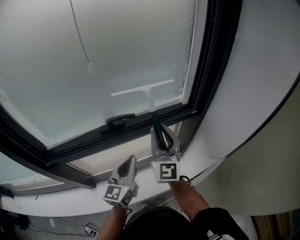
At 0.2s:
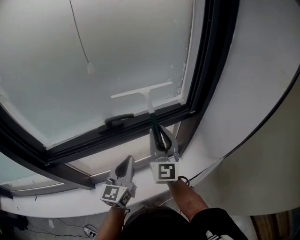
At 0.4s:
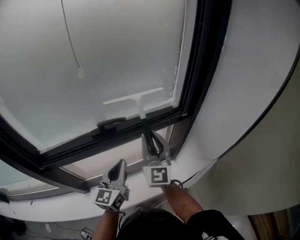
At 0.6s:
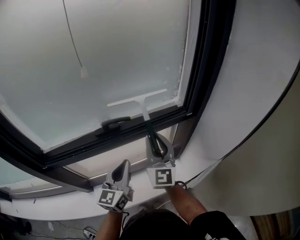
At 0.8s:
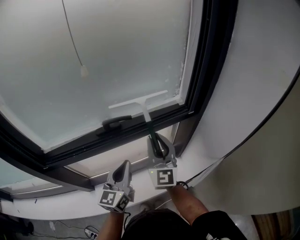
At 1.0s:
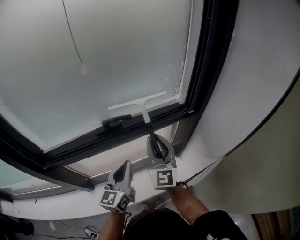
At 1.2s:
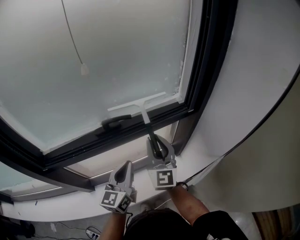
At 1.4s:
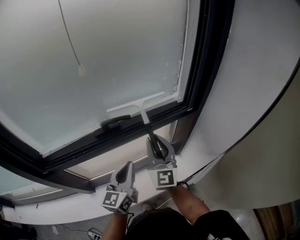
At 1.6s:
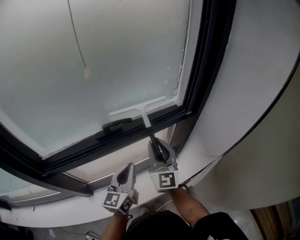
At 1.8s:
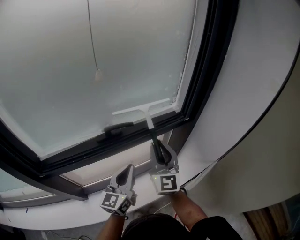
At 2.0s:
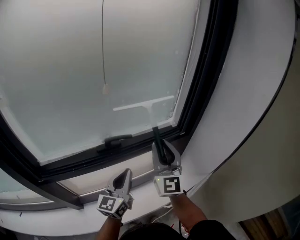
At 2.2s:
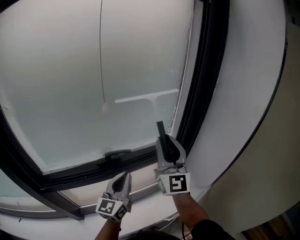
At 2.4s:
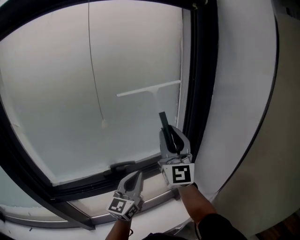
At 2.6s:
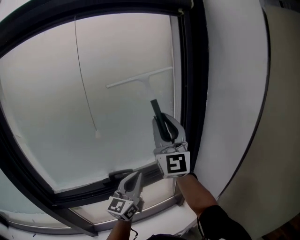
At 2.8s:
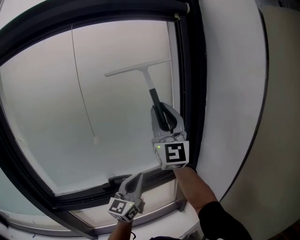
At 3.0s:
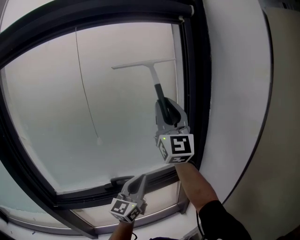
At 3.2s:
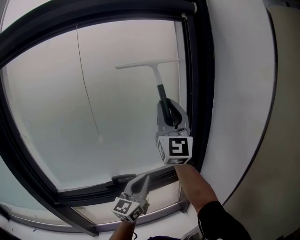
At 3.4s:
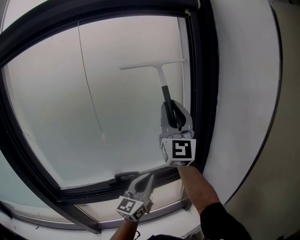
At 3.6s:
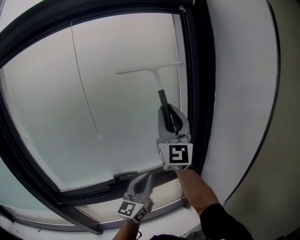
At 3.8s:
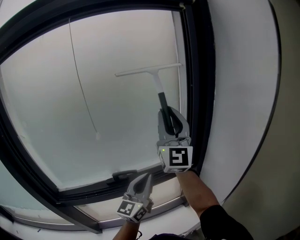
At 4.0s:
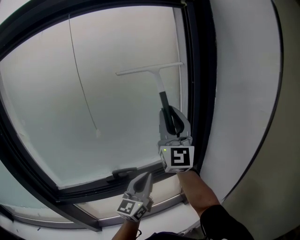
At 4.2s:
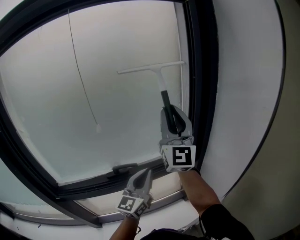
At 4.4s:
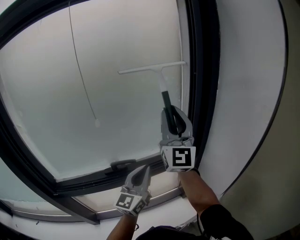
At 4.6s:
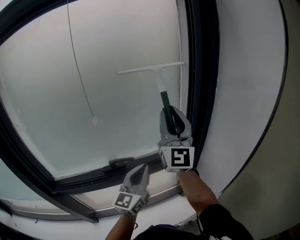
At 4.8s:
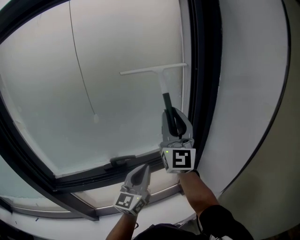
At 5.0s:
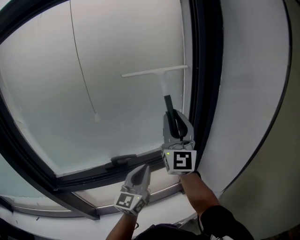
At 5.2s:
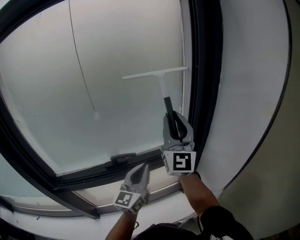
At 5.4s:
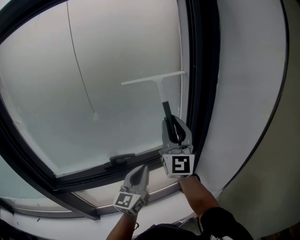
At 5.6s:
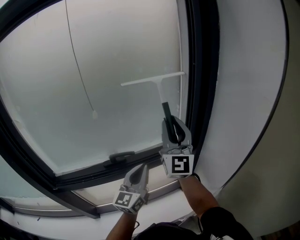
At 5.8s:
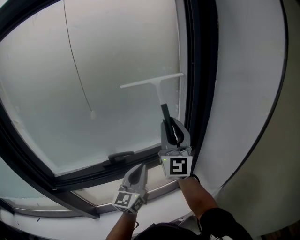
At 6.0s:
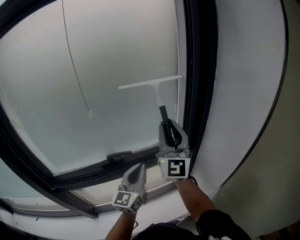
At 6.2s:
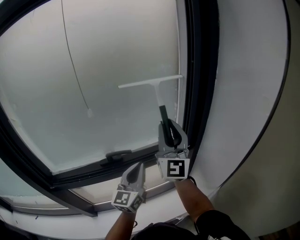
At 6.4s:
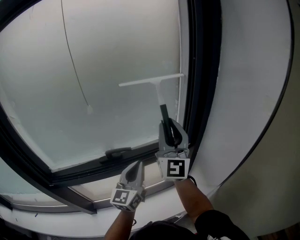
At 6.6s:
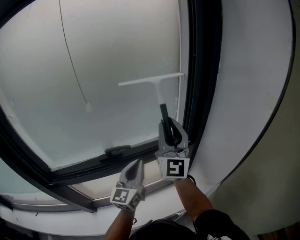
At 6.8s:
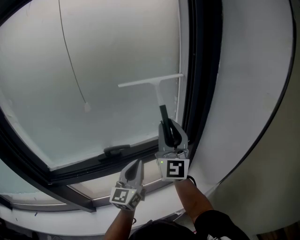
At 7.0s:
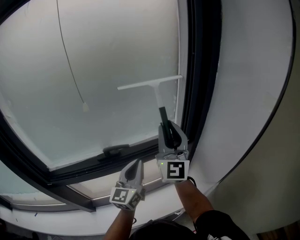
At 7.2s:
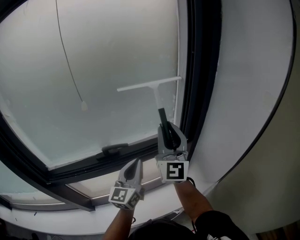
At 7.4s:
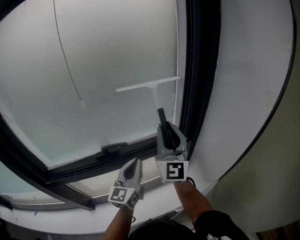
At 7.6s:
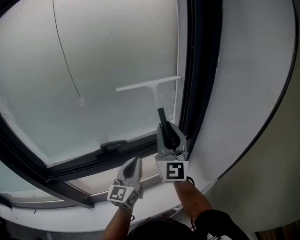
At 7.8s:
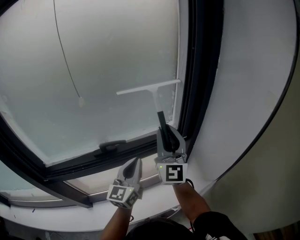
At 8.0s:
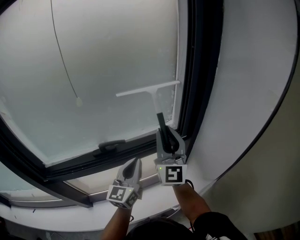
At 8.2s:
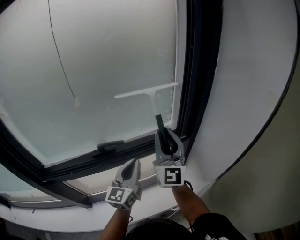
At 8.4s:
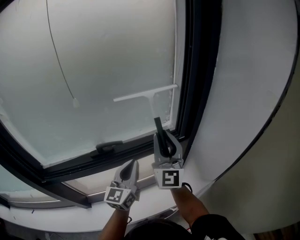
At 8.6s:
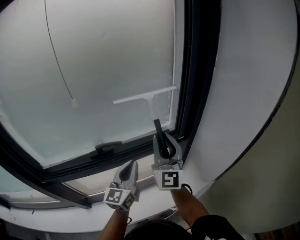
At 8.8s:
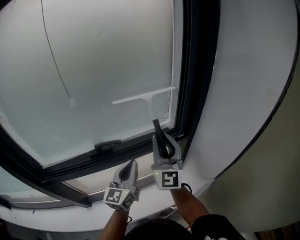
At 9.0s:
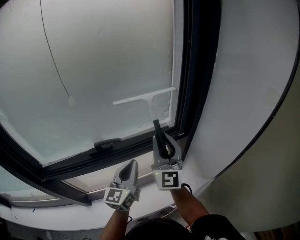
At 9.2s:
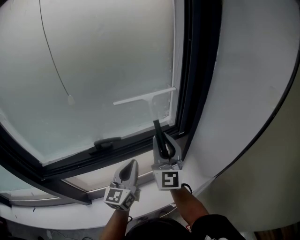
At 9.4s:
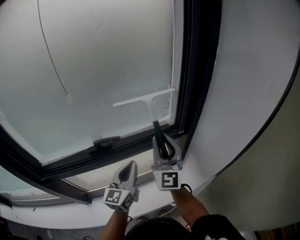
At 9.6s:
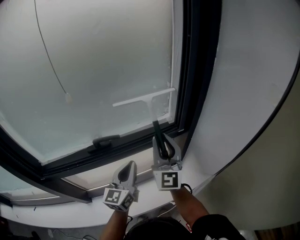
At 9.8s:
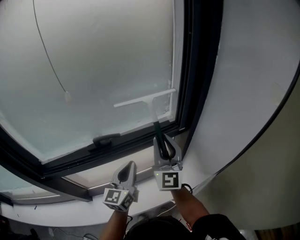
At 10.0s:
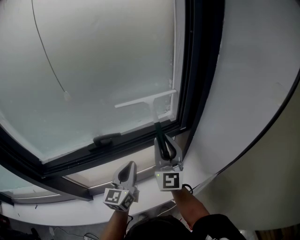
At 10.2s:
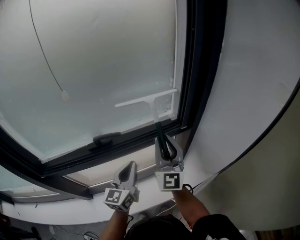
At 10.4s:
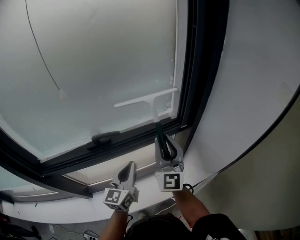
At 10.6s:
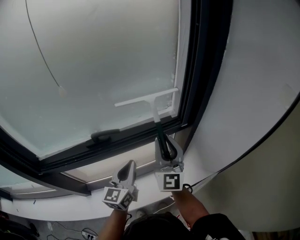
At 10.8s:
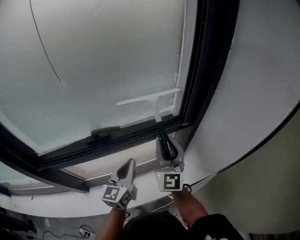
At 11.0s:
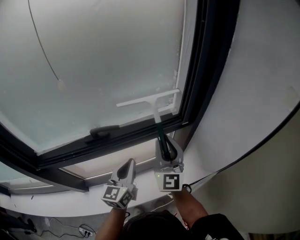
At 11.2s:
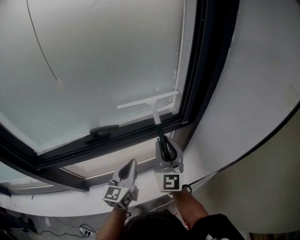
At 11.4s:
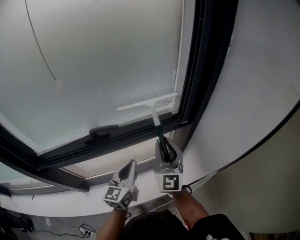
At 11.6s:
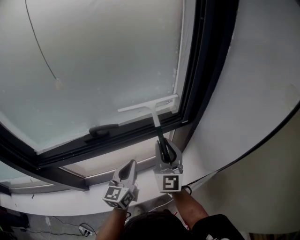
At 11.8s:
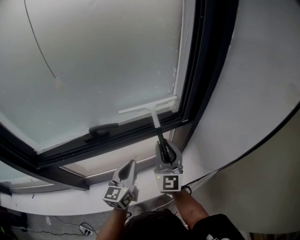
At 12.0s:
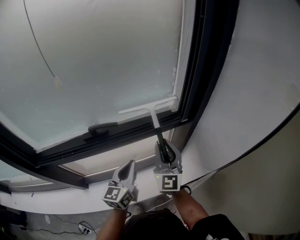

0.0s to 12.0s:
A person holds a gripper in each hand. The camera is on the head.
0.0s to 1.6s: The right gripper travels downward by approximately 5 cm.
1.6s to 3.0s: The right gripper moves upward, some 40 cm, and tips its fingers upward by roughly 30 degrees. The left gripper goes roughly 20 cm upward, forward and to the right, and rotates approximately 20 degrees.
3.0s to 4.4s: The right gripper heads downward, covering approximately 10 cm.
4.4s to 6.0s: The right gripper goes roughly 10 cm downward.
6.0s to 7.6s: The right gripper shifts approximately 5 cm downward.
7.6s to 9.0s: The right gripper travels downward by some 5 cm.
9.0s to 10.4s: The grippers make only small movements.
10.4s to 12.0s: The right gripper shifts approximately 5 cm downward.

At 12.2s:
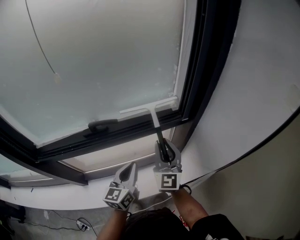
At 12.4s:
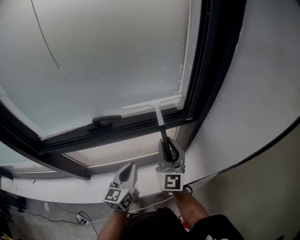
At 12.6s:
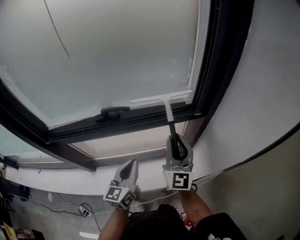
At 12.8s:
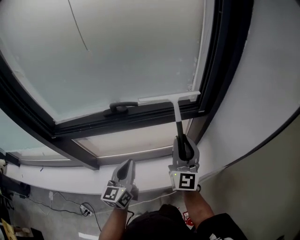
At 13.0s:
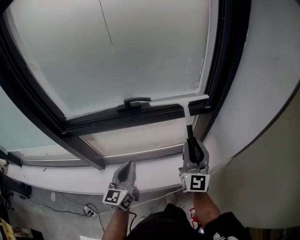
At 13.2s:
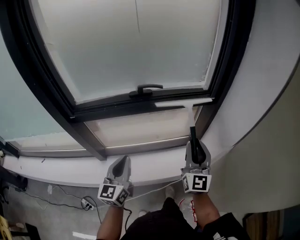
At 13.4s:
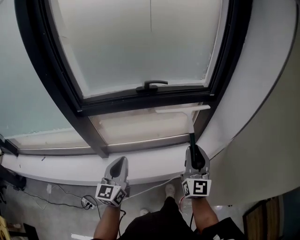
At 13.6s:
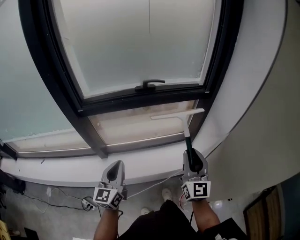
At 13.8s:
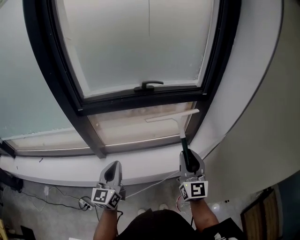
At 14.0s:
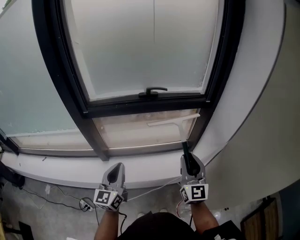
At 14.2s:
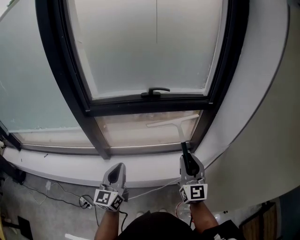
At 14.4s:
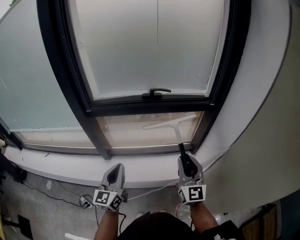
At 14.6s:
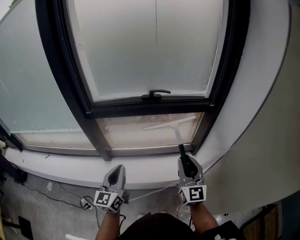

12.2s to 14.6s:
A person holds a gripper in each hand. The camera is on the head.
12.2s to 13.4s: The right gripper shifts approximately 25 cm backward. Meanwhile the left gripper heads backward and to the left, covering about 30 cm.
13.4s to 14.6s: The left gripper moves backward, roughly 5 cm.

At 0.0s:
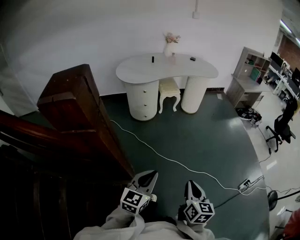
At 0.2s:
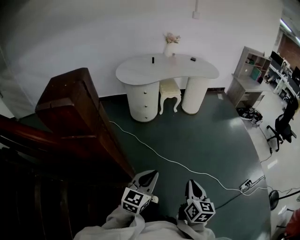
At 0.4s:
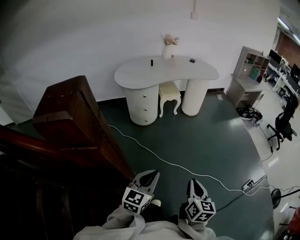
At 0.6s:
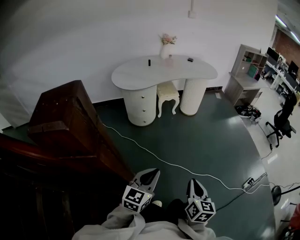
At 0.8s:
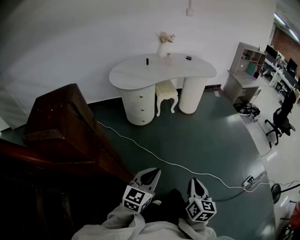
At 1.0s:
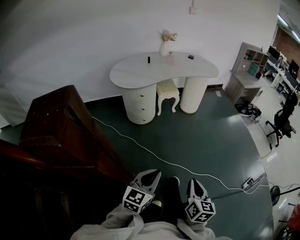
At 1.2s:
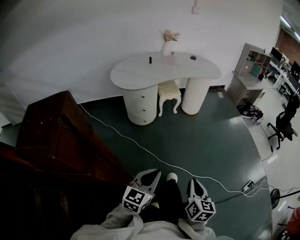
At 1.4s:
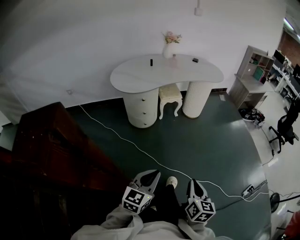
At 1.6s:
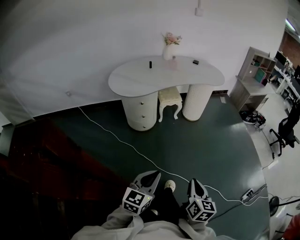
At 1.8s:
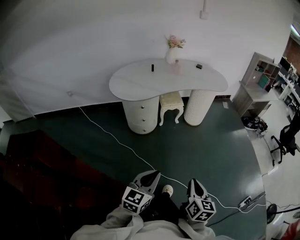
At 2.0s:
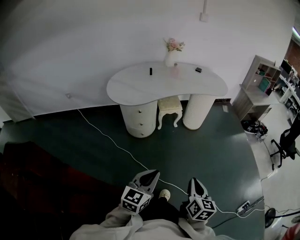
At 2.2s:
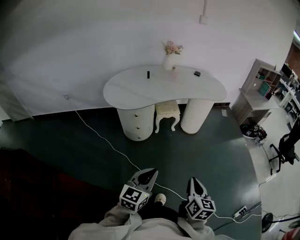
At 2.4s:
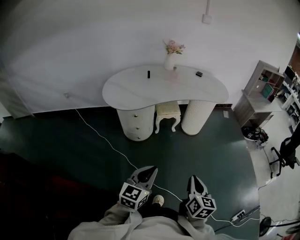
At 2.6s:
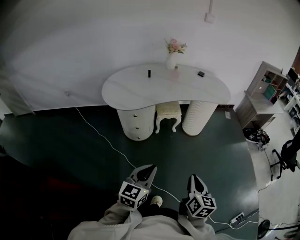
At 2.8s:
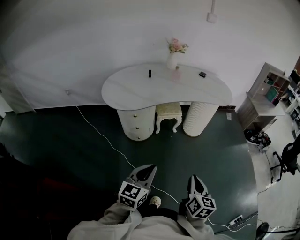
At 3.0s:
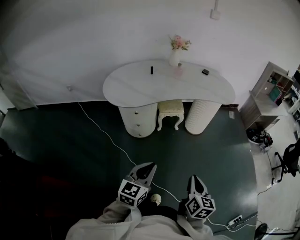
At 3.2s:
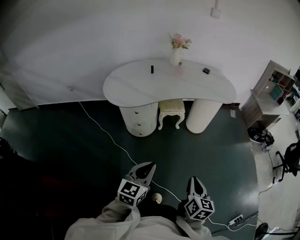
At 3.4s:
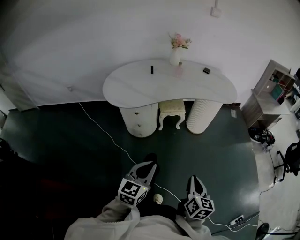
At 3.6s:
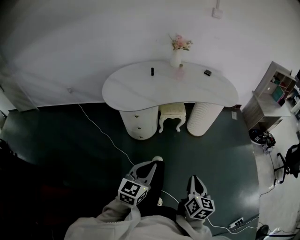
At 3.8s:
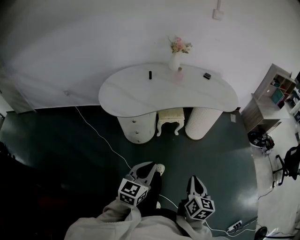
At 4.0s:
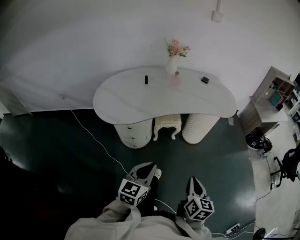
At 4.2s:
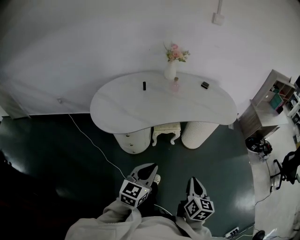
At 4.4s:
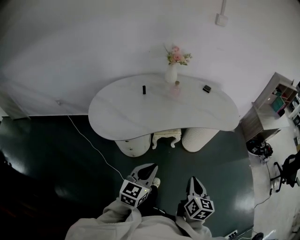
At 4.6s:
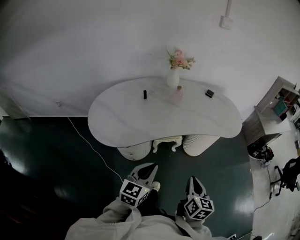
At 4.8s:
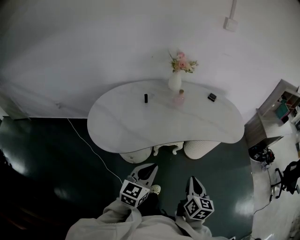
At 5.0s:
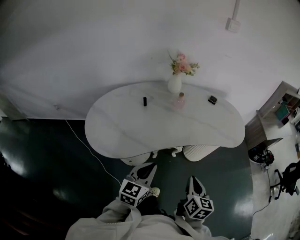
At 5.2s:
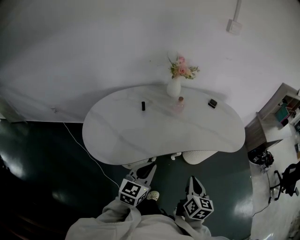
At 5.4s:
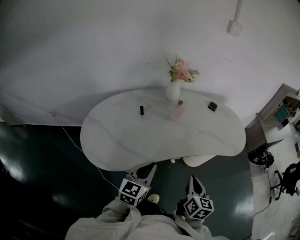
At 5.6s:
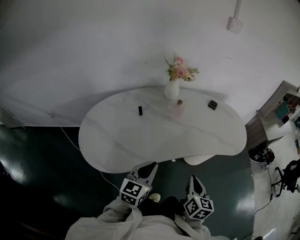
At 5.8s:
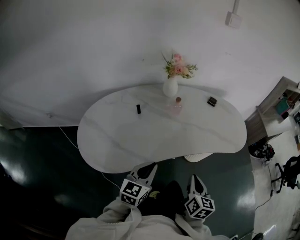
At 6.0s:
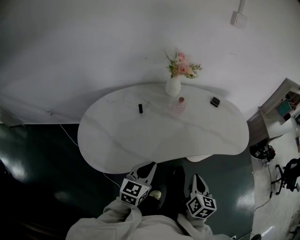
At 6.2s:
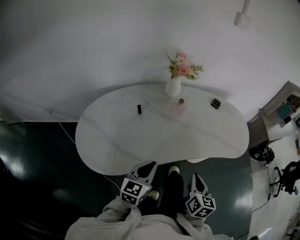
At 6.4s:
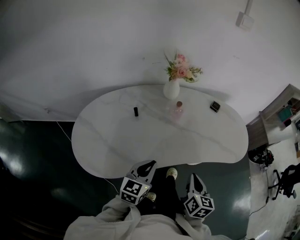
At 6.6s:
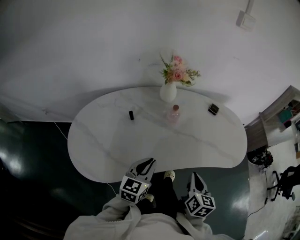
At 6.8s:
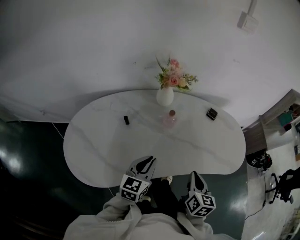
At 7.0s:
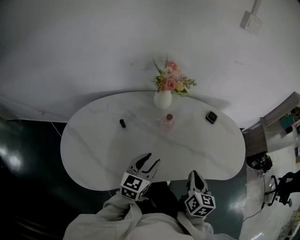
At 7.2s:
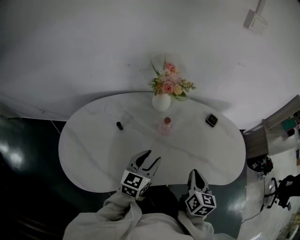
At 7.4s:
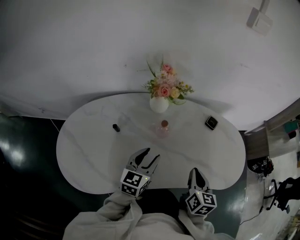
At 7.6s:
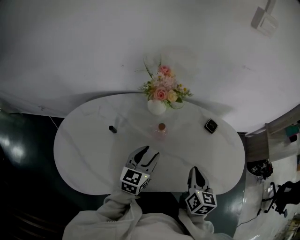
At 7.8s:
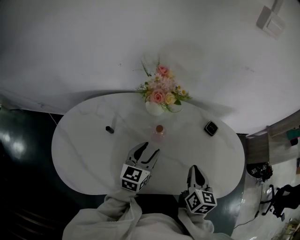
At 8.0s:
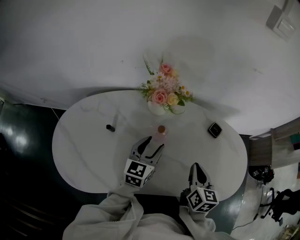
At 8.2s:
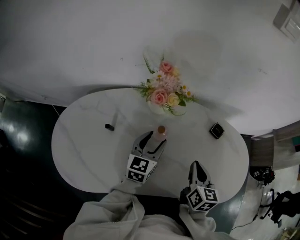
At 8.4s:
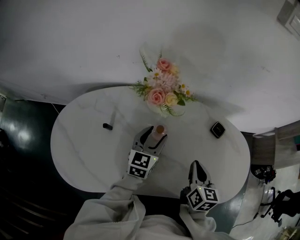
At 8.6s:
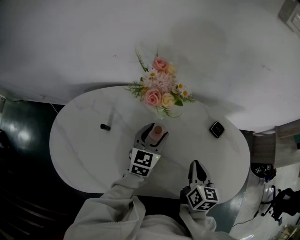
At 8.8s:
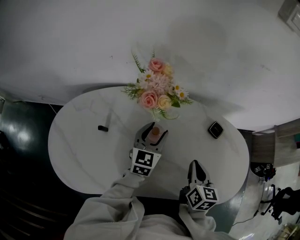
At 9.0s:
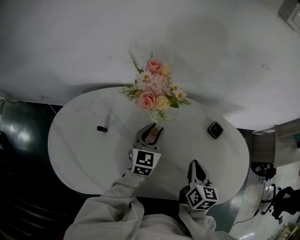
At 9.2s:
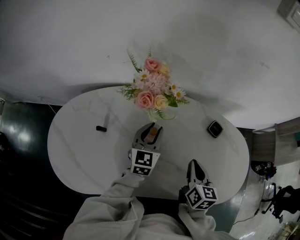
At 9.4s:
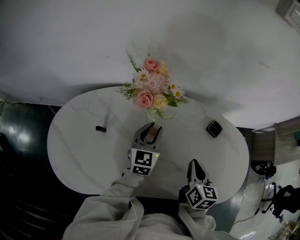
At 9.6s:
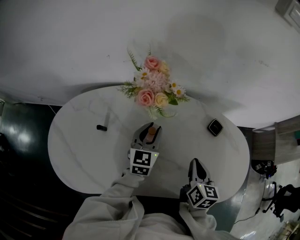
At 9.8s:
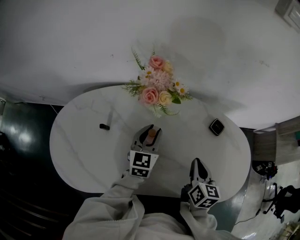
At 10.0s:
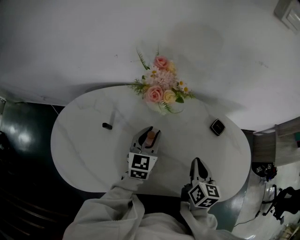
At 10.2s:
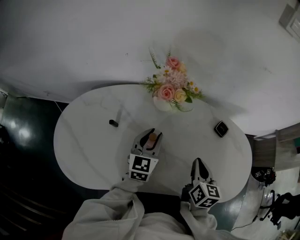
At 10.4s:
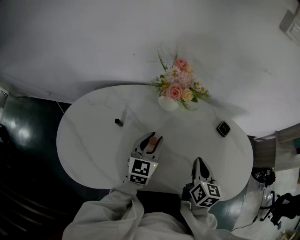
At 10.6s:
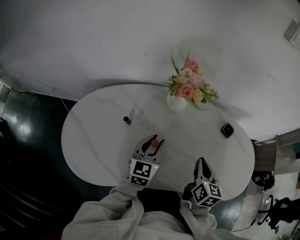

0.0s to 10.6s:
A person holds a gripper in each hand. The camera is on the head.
0.0s to 1.6s: The two grippers go some 20 cm forward.
1.6s to 3.0s: The grippers both shift forward by some 20 cm.
3.0s to 4.6s: Both grippers travel together forward, some 30 cm.
4.6s to 6.0s: The two grippers go about 15 cm forward.
6.0s to 7.6s: The grippers both shift forward by some 25 cm. The left gripper opens.
7.6s to 9.0s: The right gripper travels forward by roughly 10 cm, while the left gripper shifts approximately 15 cm forward.
9.0s to 10.6s: The right gripper moves to the left, roughly 5 cm. The left gripper heads backward and to the left, covering about 15 cm.
